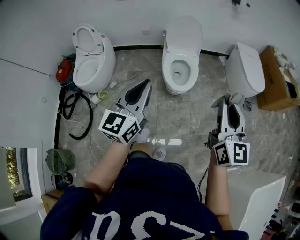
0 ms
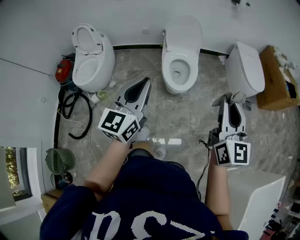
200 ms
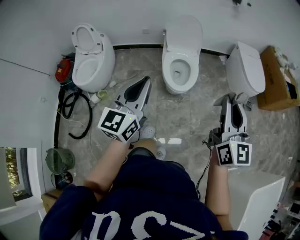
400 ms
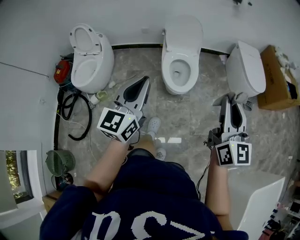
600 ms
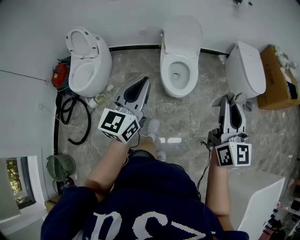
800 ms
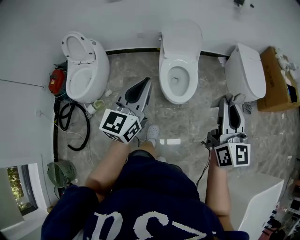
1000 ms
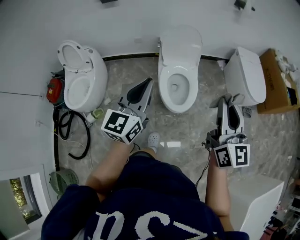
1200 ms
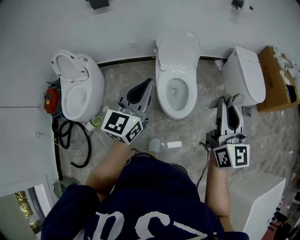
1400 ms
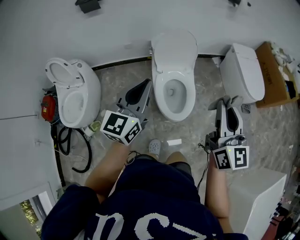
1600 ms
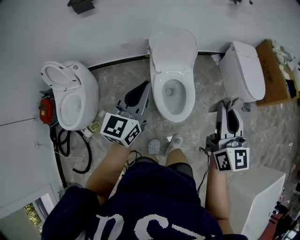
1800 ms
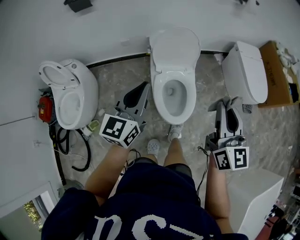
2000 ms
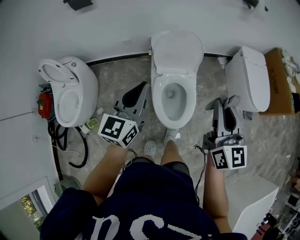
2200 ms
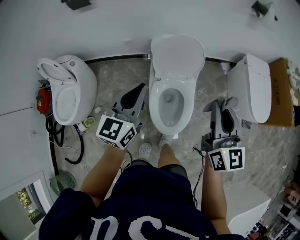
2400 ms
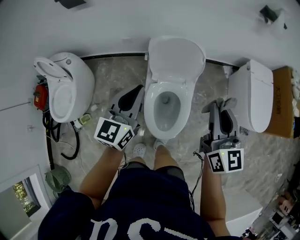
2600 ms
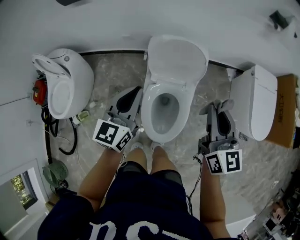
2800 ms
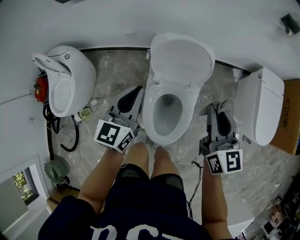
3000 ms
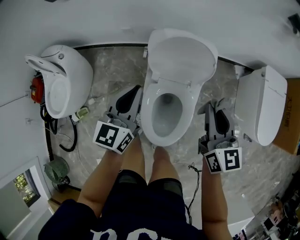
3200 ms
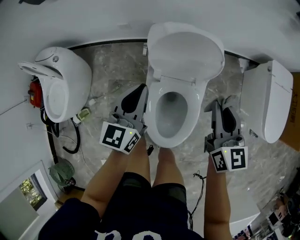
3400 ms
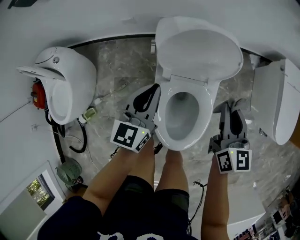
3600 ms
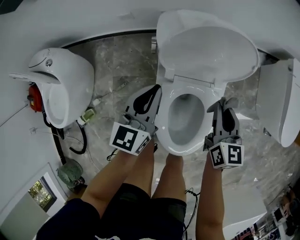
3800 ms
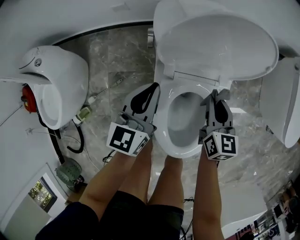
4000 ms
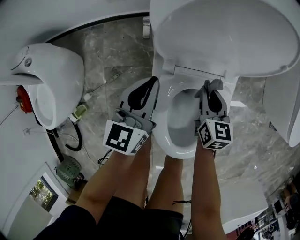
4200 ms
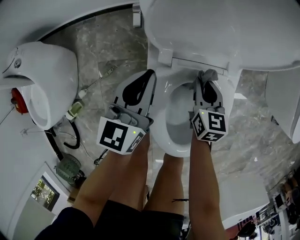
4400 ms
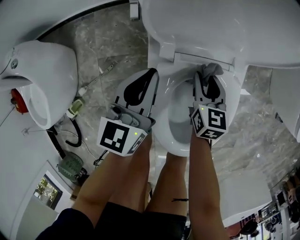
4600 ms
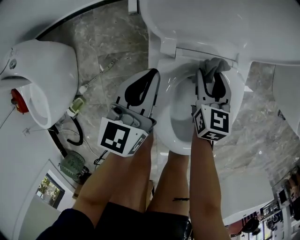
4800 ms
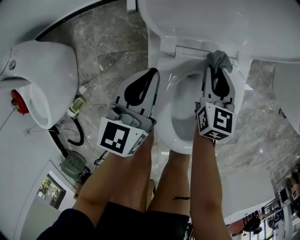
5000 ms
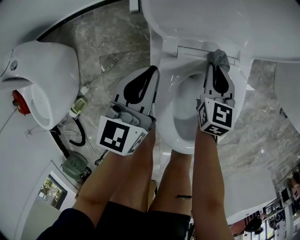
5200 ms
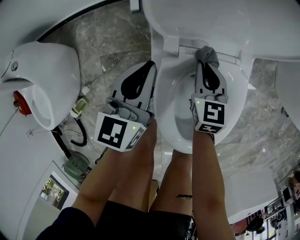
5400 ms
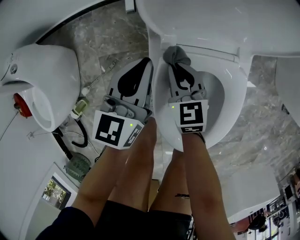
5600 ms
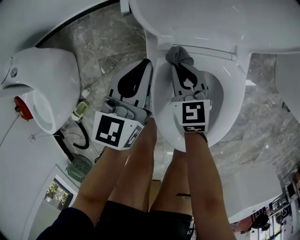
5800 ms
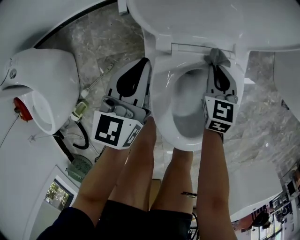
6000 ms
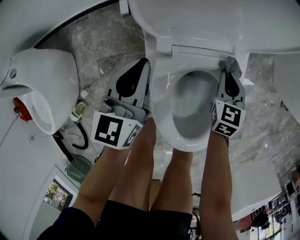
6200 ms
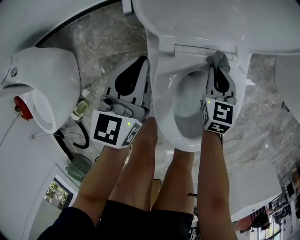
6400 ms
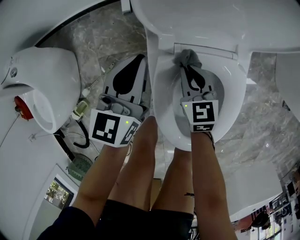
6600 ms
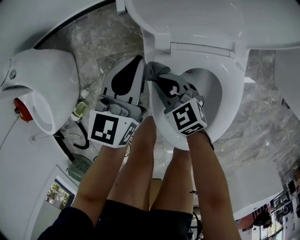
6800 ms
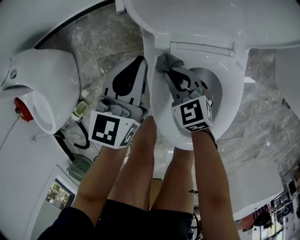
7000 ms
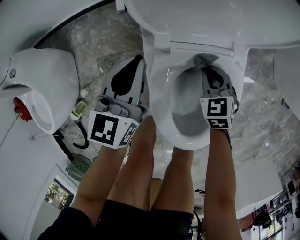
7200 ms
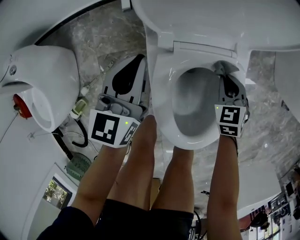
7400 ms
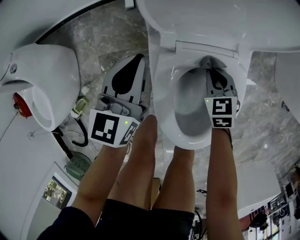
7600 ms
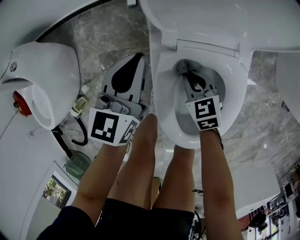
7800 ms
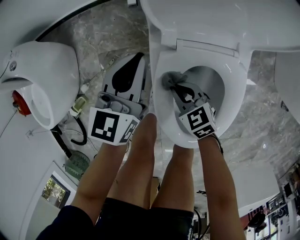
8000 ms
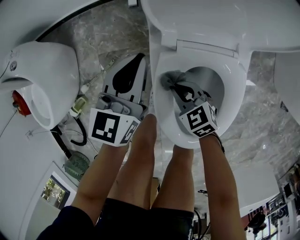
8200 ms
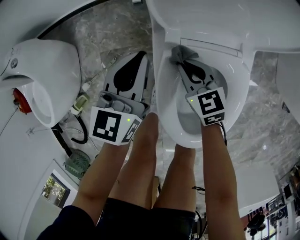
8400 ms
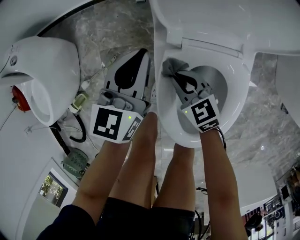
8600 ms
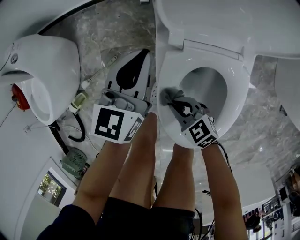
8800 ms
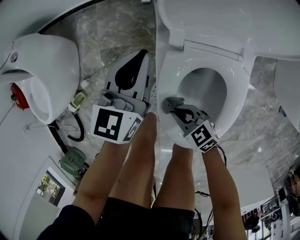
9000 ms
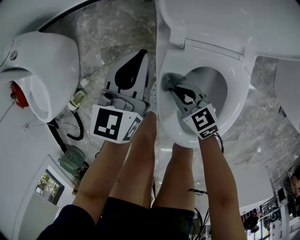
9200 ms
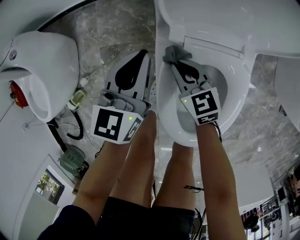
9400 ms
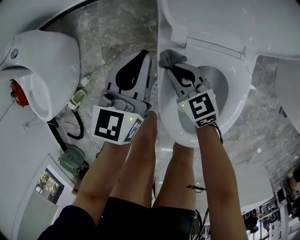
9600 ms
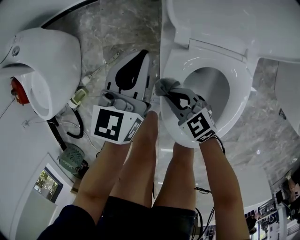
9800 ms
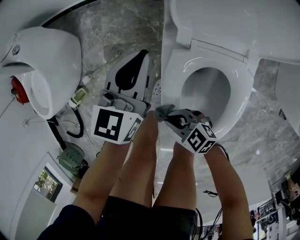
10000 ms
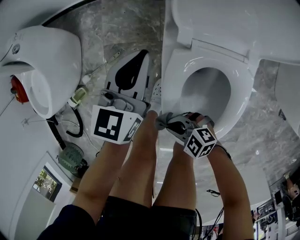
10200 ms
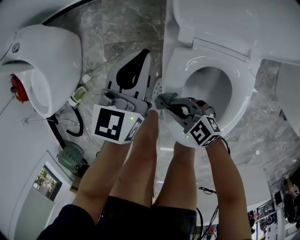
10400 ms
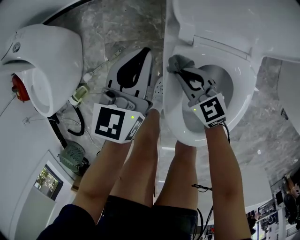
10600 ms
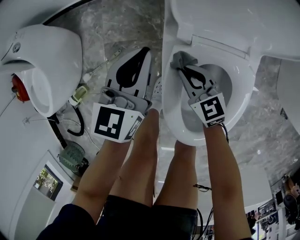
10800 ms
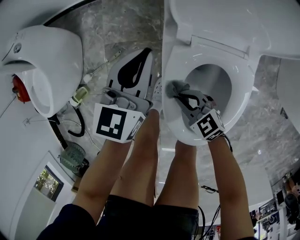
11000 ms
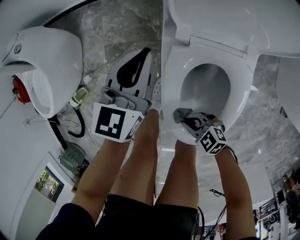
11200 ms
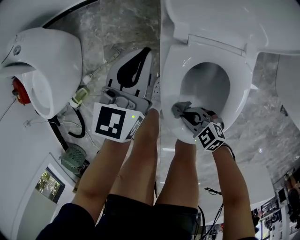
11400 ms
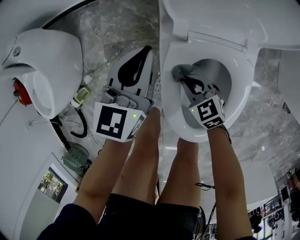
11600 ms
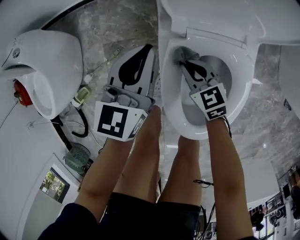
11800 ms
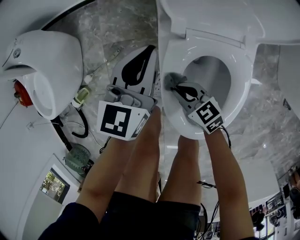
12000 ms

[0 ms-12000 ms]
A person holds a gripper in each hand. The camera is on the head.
0 ms to 1600 ms: Both grippers travel together forward, roughly 35 cm.
1600 ms to 3000 ms: The grippers both shift forward and downward by some 40 cm. The right gripper turns by some 20 degrees; the left gripper swivels roughly 20 degrees.
3000 ms to 4400 ms: The two grippers go about 50 cm downward. The right gripper changes its angle by some 30 degrees.
4400 ms to 6000 ms: The right gripper reaches roughly 10 cm to the left, then returns, and opens, then closes once more.
6000 ms to 7600 ms: The right gripper rotates about 20 degrees.
7600 ms to 9000 ms: The right gripper ends up approximately 20 cm from where it was, and turns by about 40 degrees.
9000 ms to 10400 ms: The right gripper rotates roughly 20 degrees.
10400 ms to 12000 ms: The right gripper swings forward and backward, roughly 20 cm each way, with 3 reversals, and swivels some 30 degrees.

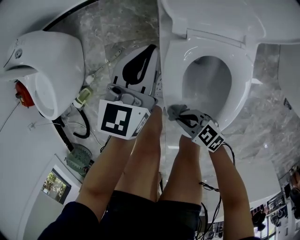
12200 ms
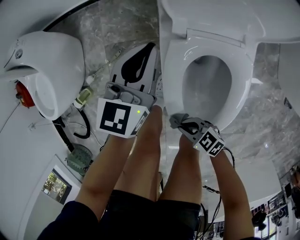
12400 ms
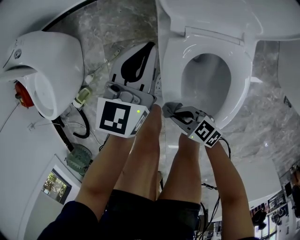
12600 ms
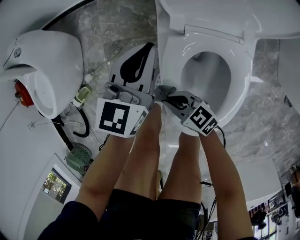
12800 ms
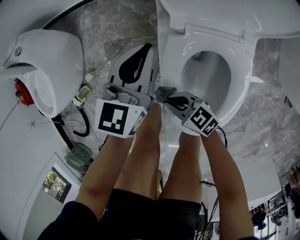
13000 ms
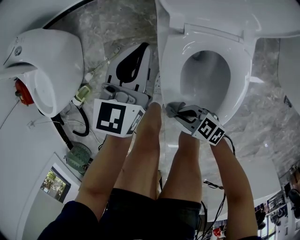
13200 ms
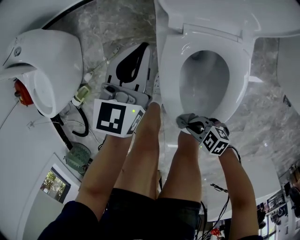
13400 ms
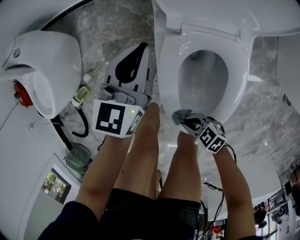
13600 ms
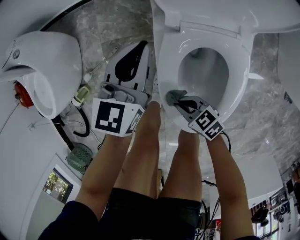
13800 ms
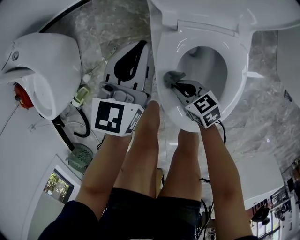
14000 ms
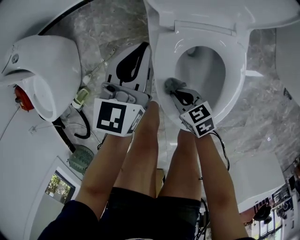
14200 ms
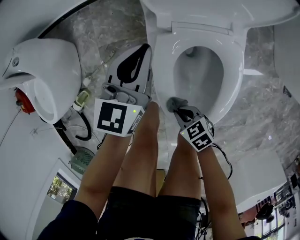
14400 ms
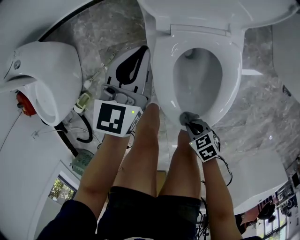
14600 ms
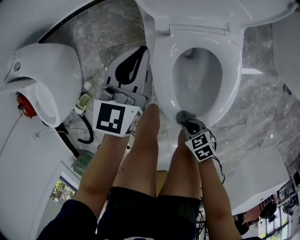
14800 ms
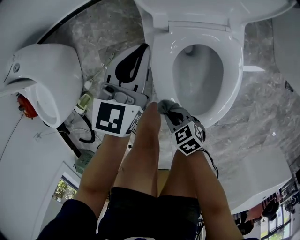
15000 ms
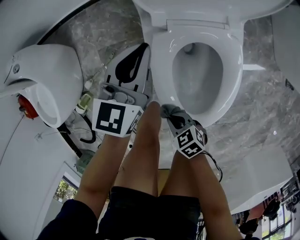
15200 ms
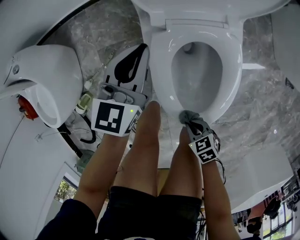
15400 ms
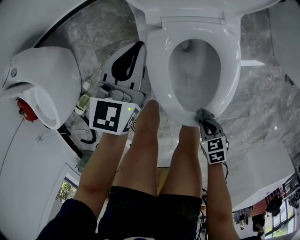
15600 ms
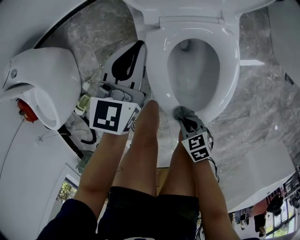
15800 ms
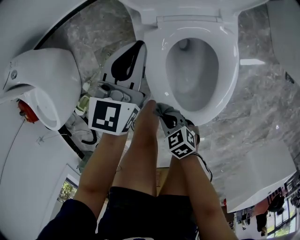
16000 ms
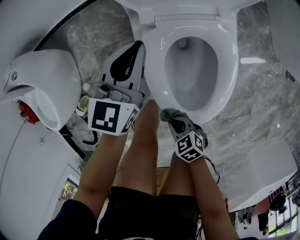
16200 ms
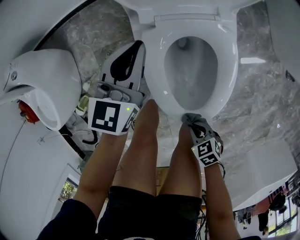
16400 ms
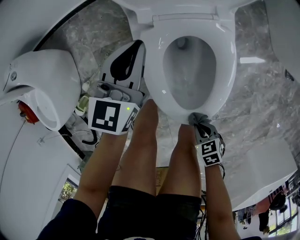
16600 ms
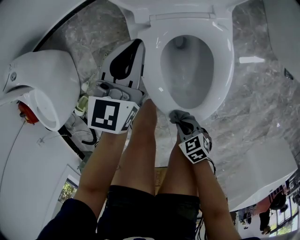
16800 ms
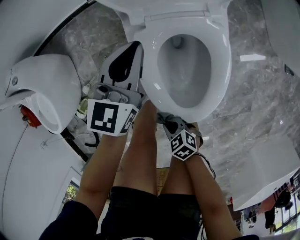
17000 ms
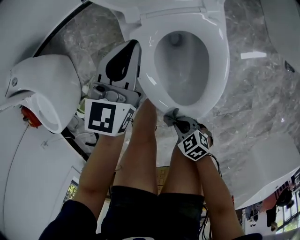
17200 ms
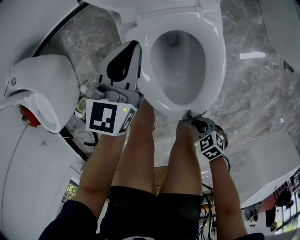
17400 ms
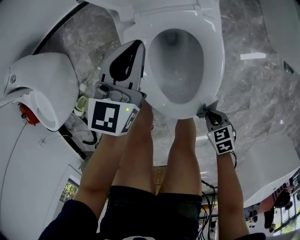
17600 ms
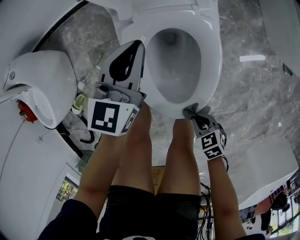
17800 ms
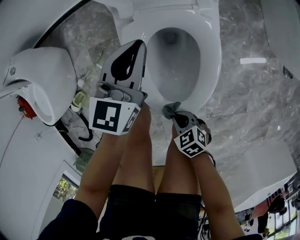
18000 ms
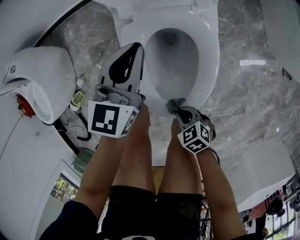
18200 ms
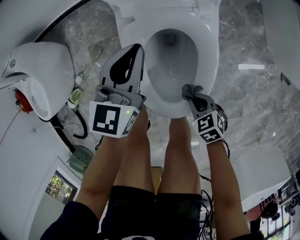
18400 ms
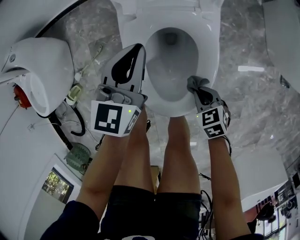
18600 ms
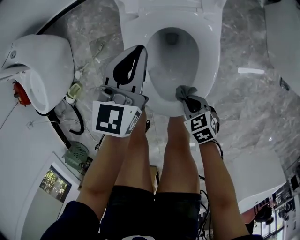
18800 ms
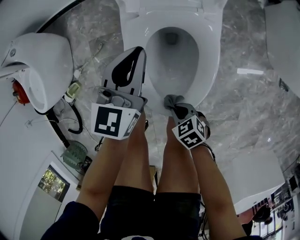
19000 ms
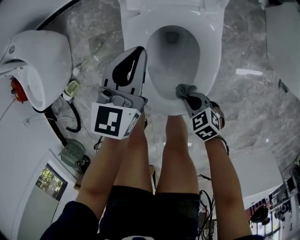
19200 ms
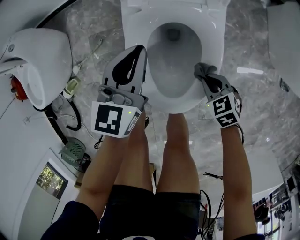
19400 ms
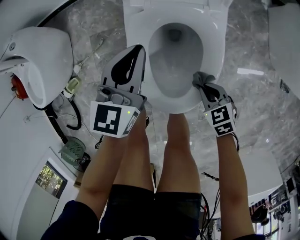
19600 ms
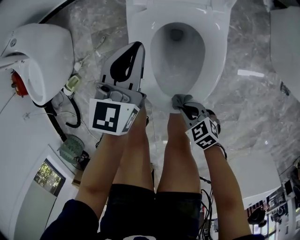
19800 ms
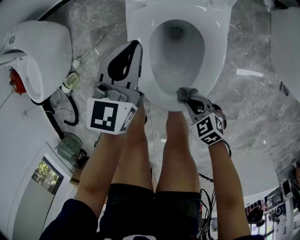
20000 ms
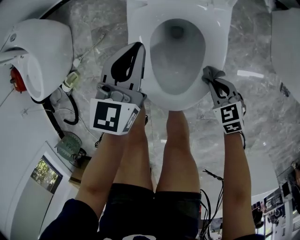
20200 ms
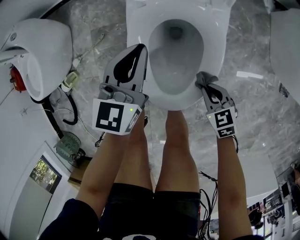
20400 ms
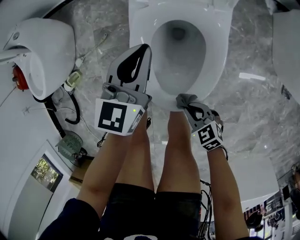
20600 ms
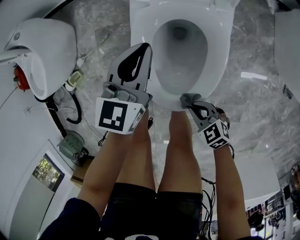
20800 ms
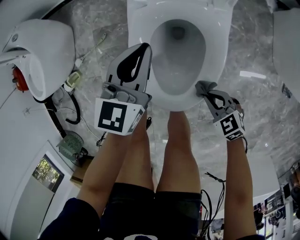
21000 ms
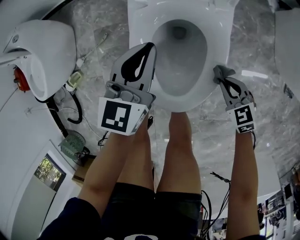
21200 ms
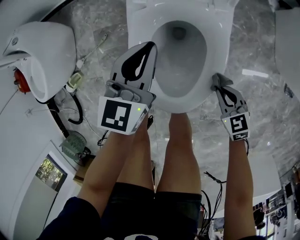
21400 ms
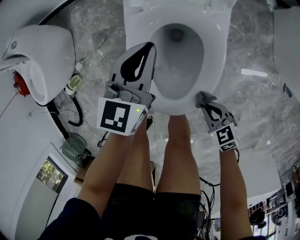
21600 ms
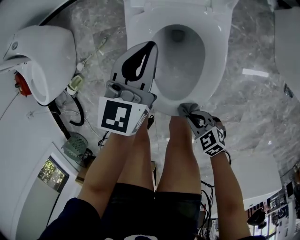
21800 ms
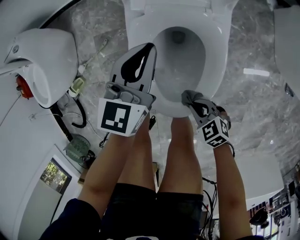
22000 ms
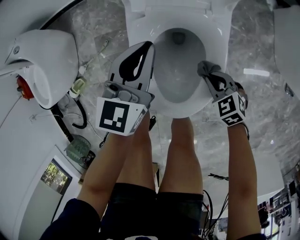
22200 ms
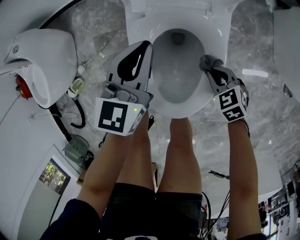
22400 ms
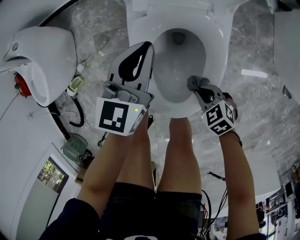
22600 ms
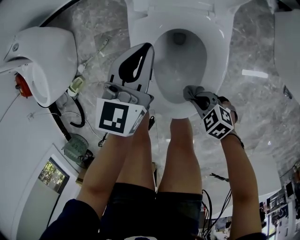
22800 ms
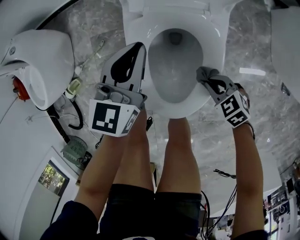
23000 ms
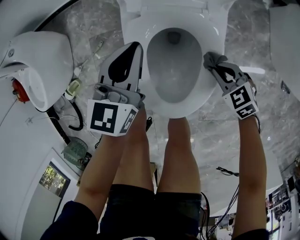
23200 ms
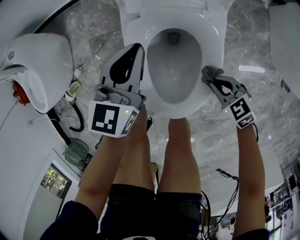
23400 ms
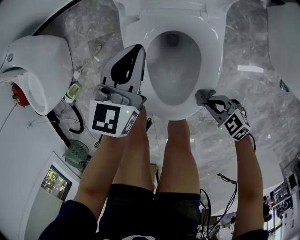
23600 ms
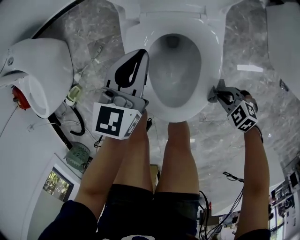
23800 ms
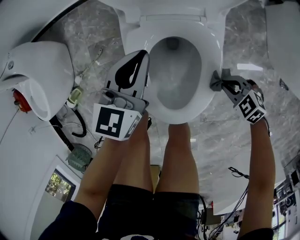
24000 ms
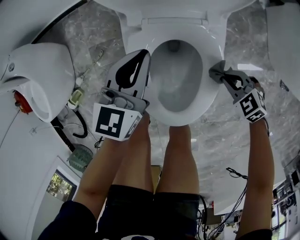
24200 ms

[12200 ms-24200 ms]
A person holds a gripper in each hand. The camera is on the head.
13800 ms to 15200 ms: The right gripper swings forward and backward, some 20 cm each way, with 2 reversals.
15200 ms to 16600 ms: The right gripper goes left and right, roughly 15 cm each way, reversing 2 times.
16600 ms to 18200 ms: The left gripper travels backward by some 5 cm; the right gripper swings left and right, some 20 cm each way, with 2 reversals.
18200 ms to 19800 ms: The right gripper swings left and right, approximately 15 cm each way, with 3 reversals.
19800 ms to 21200 ms: The right gripper moves left and right over roughly 15 cm, changing direction 2 times.
21200 ms to 22600 ms: The right gripper goes forward and backward, approximately 20 cm each way, reversing 2 times.
22600 ms to 24200 ms: The right gripper moves left and right over about 15 cm, changing direction 2 times.
